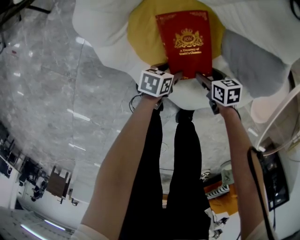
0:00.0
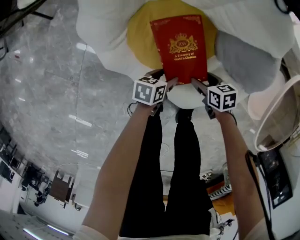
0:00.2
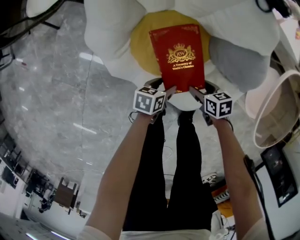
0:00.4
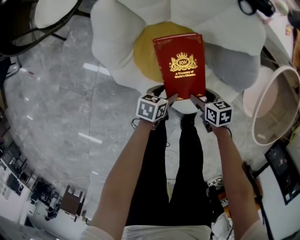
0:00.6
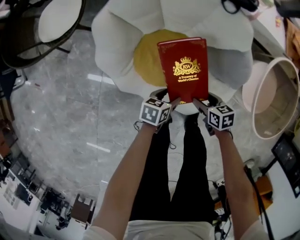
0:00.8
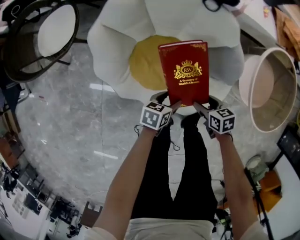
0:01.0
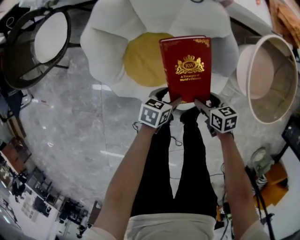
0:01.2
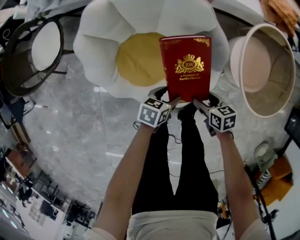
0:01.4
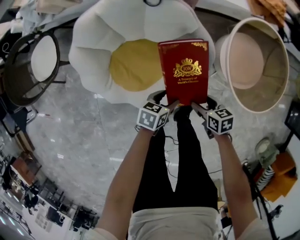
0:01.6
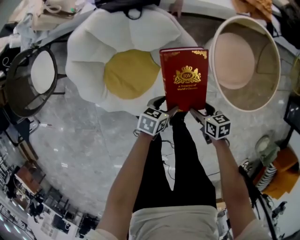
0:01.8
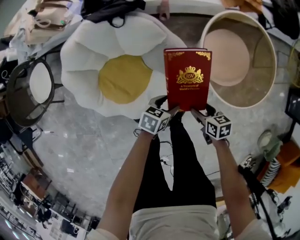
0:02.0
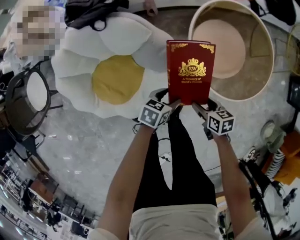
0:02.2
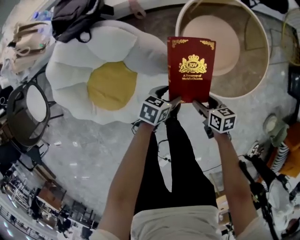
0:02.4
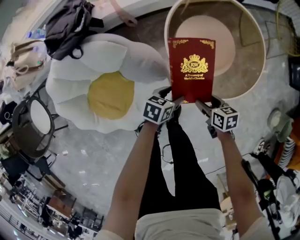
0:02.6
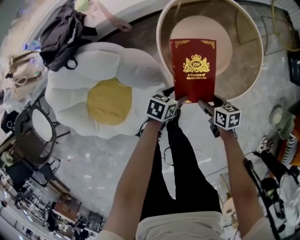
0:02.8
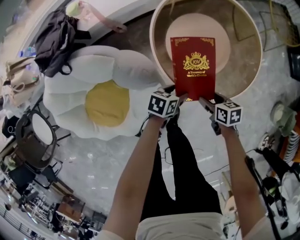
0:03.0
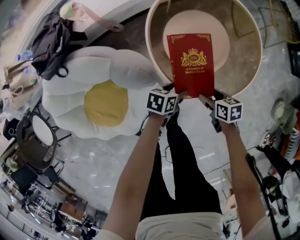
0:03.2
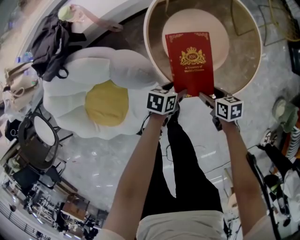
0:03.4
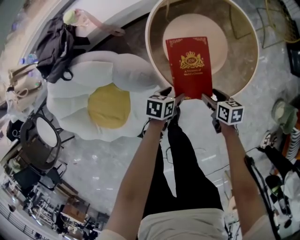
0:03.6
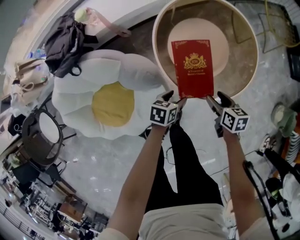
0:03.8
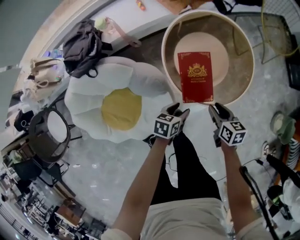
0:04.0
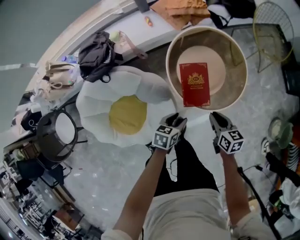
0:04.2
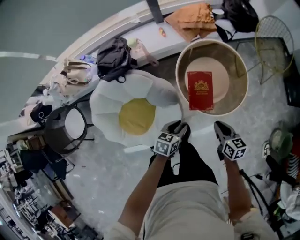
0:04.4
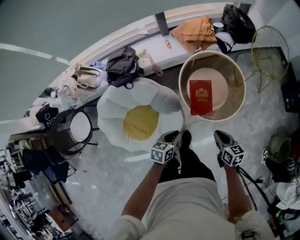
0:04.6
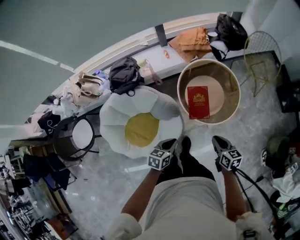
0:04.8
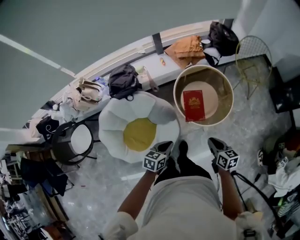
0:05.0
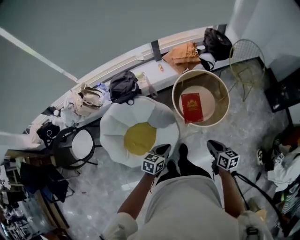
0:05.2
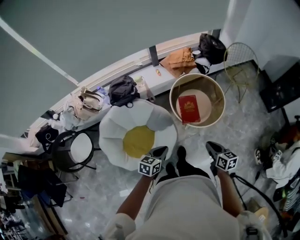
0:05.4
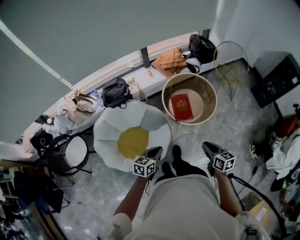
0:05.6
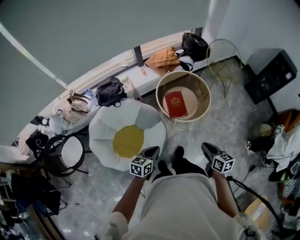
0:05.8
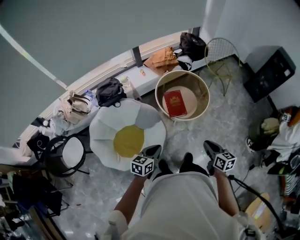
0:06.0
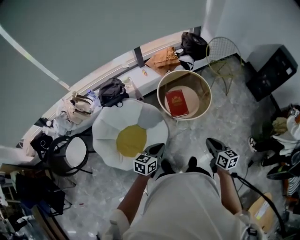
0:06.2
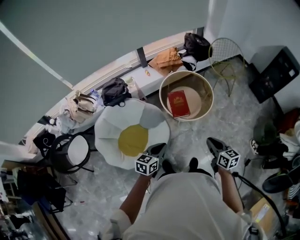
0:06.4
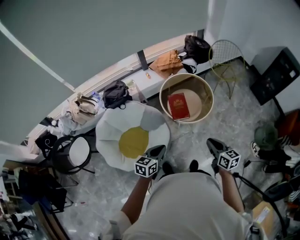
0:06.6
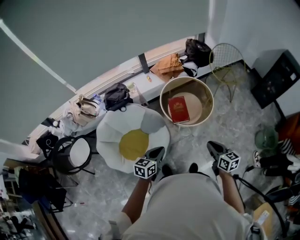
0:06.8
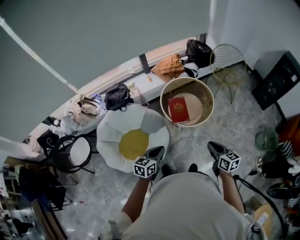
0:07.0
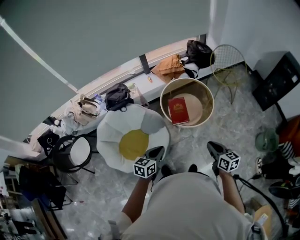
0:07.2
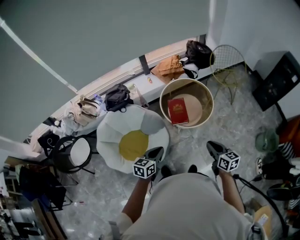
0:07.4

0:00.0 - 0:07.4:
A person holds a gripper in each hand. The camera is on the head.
0:00.0 - 0:01.4: The grippers both shift upward by roughly 25 cm. The right gripper changes its angle by about 30 degrees. Meanwhile the left gripper changes its angle by roughly 30 degrees.
0:01.4 - 0:03.0: The right gripper ends up roughly 35 cm from where it was, and changes its angle by some 30 degrees. Meanwhile the left gripper shifts by approximately 40 cm, and turns by some 30 degrees.
0:03.0 - 0:04.4: The two grippers go about 30 cm upward. The right gripper turns by approximately 30 degrees, and closes. Meanwhile the left gripper turns by approximately 20 degrees, and closes.
0:04.4 - 0:06.0: The grippers both shift backward and upward by some 35 cm. The left gripper closes its fingers.
0:06.0 - 0:07.4: Both grippers travel together to the right, approximately 5 cm.

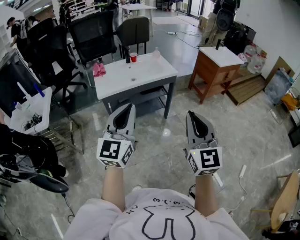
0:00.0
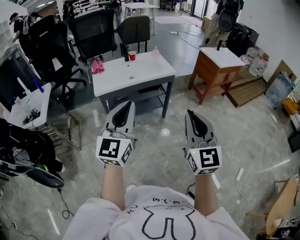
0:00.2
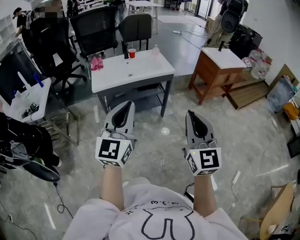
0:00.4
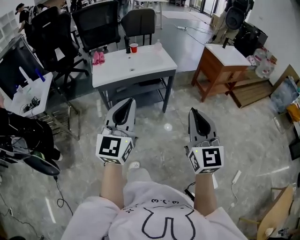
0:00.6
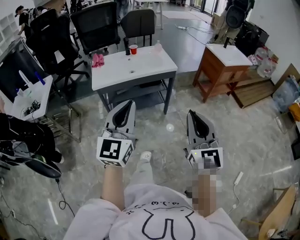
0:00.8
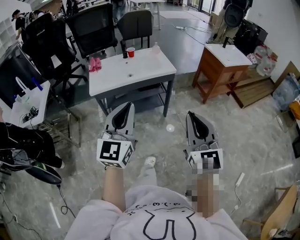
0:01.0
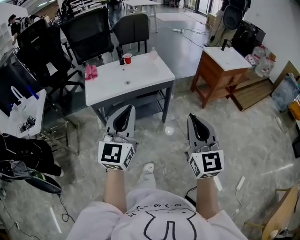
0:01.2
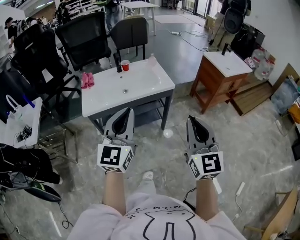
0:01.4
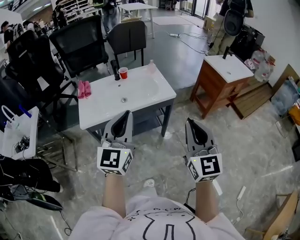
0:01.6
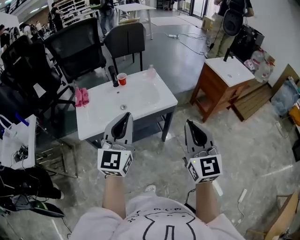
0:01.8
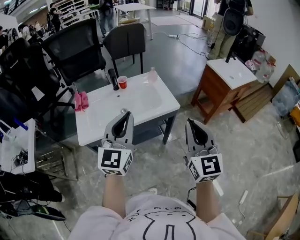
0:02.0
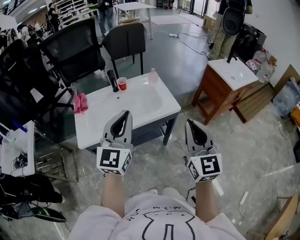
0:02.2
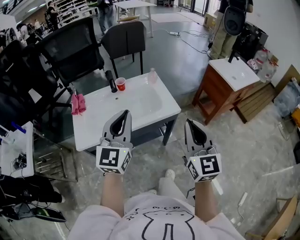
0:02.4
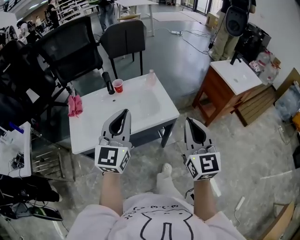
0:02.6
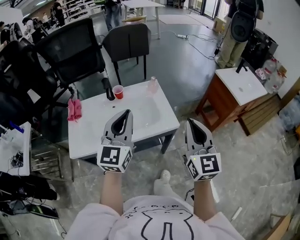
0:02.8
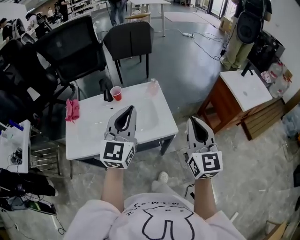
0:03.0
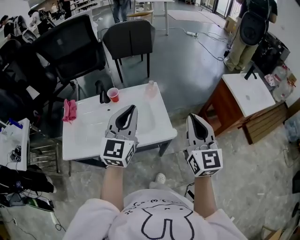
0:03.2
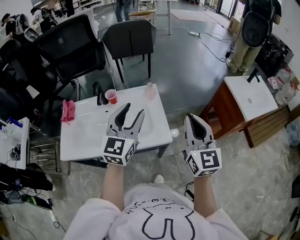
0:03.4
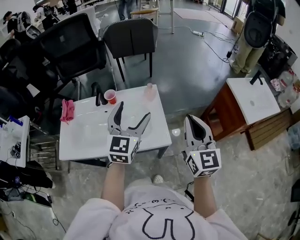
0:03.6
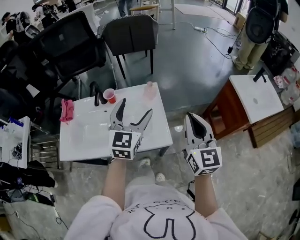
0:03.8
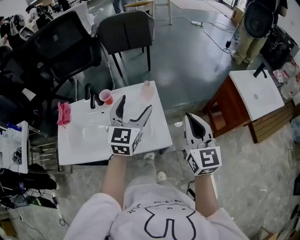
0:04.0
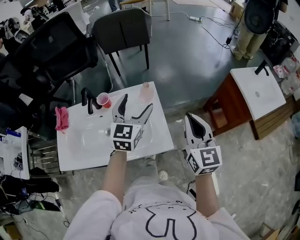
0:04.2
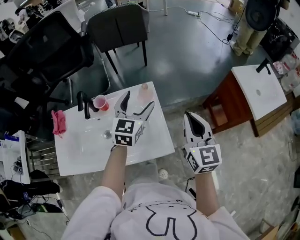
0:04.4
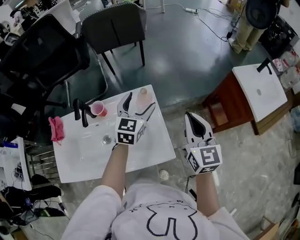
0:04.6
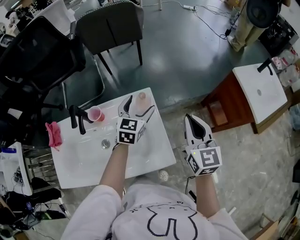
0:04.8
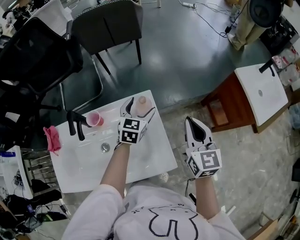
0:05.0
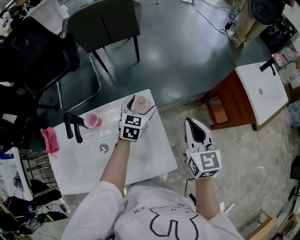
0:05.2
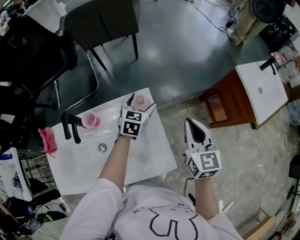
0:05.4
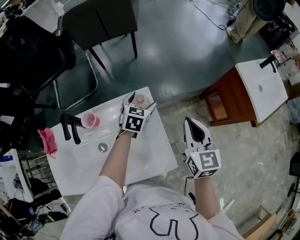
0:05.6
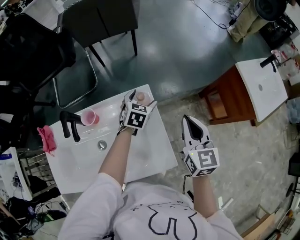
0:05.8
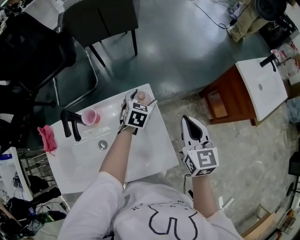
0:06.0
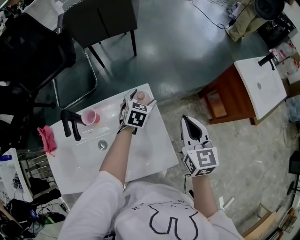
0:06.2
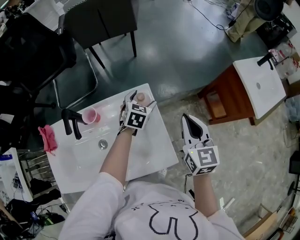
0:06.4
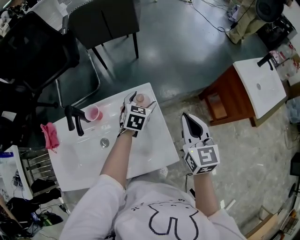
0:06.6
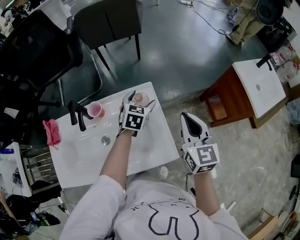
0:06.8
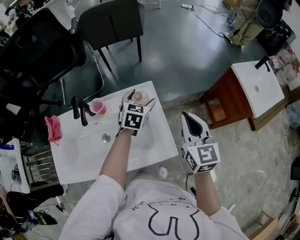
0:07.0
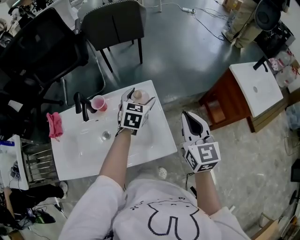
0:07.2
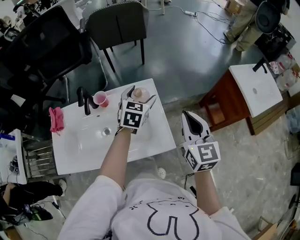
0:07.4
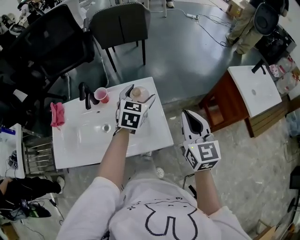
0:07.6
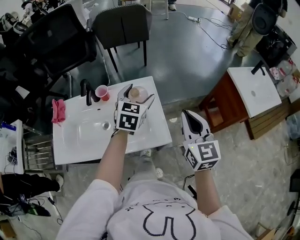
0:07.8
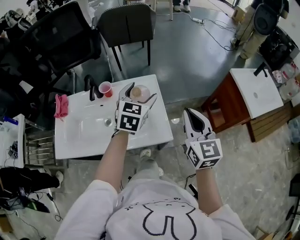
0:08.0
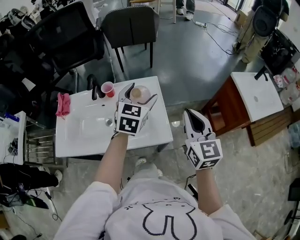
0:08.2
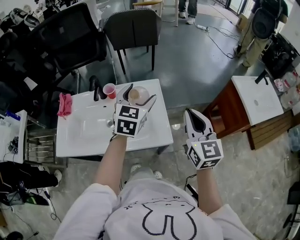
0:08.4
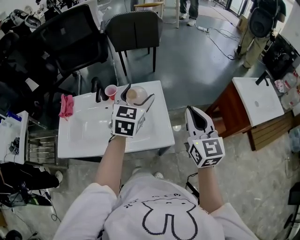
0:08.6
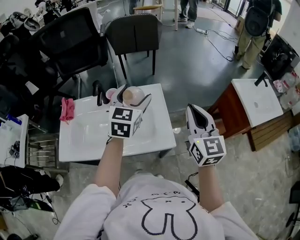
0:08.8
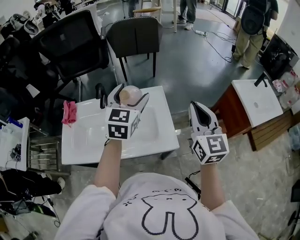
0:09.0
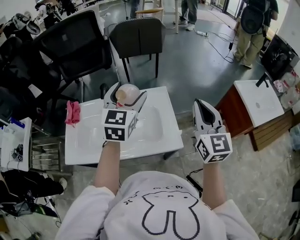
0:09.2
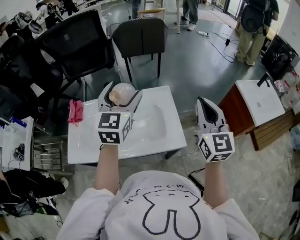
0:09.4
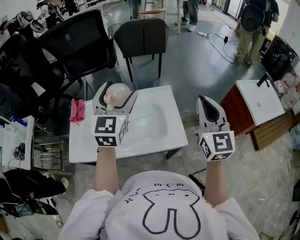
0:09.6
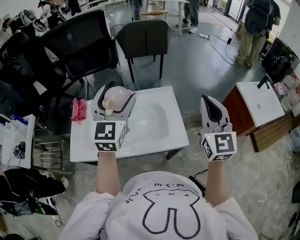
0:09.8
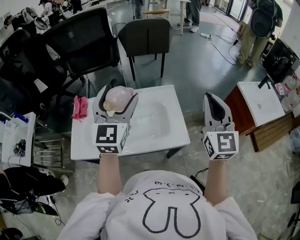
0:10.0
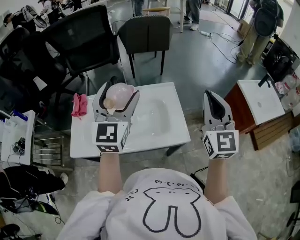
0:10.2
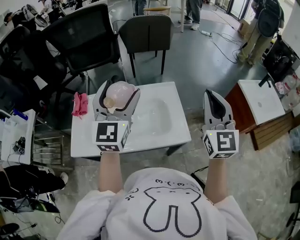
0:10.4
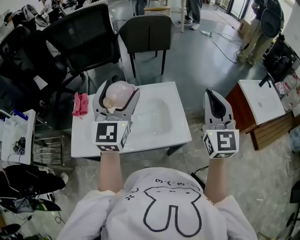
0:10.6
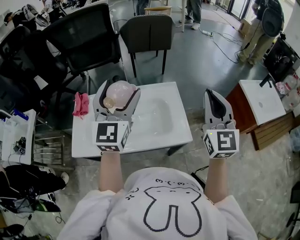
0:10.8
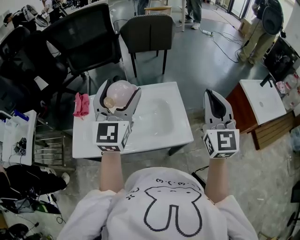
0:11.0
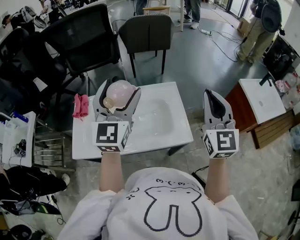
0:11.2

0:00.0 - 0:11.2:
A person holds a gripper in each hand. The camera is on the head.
0:00.0 - 0:01.6: Both grippers move forward, some 25 cm.
0:01.6 - 0:03.2: Both grippers travel together forward, approximately 35 cm.
0:03.2 - 0:04.8: Both grippers move forward and downward, approximately 30 cm. The left gripper turns by about 30 degrees, and opens.
0:04.8 - 0:06.4: The left gripper travels downward by approximately 10 cm.
0:06.4 - 0:08.0: The left gripper is displaced upward and backward by approximately 25 cm, and rotates about 20 degrees. Meanwhile the right gripper goes roughly 15 cm backward and upward.
0:08.0 - 0:09.6: The right gripper moves upward and to the left, roughly 10 cm. Meanwhile the left gripper shifts approximately 25 cm to the left and upward, and changes its angle by some 20 degrees.
0:09.6 - 0:11.2: The grippers move only a little.

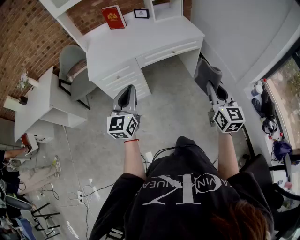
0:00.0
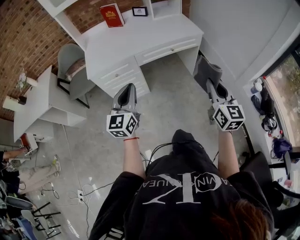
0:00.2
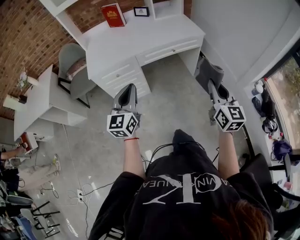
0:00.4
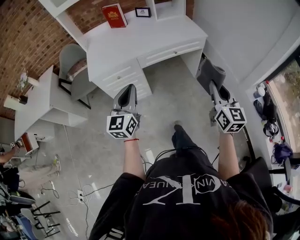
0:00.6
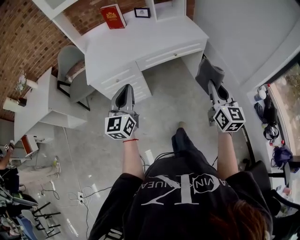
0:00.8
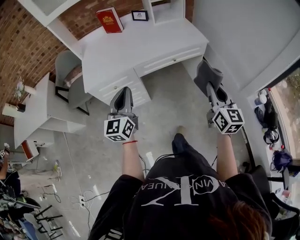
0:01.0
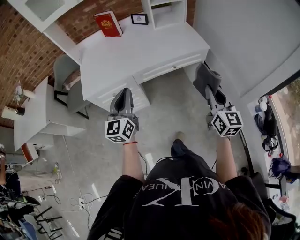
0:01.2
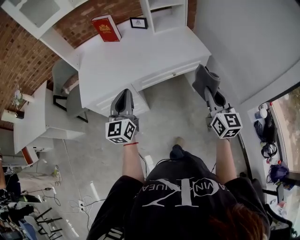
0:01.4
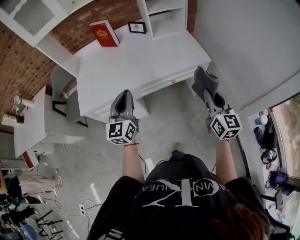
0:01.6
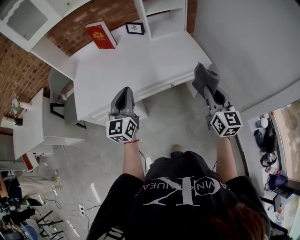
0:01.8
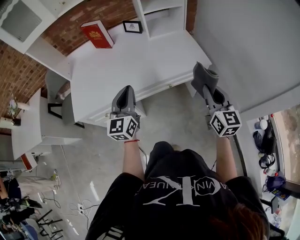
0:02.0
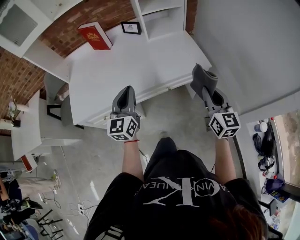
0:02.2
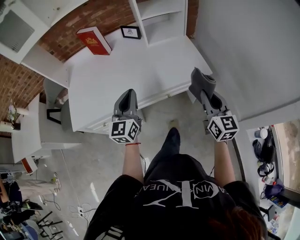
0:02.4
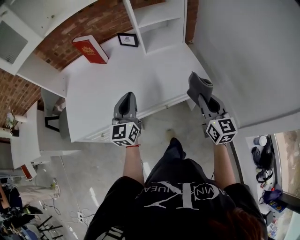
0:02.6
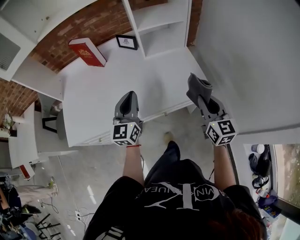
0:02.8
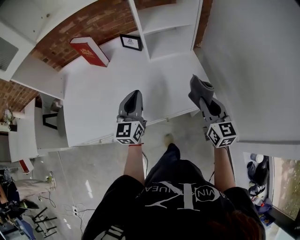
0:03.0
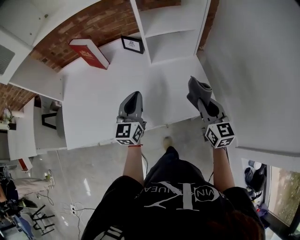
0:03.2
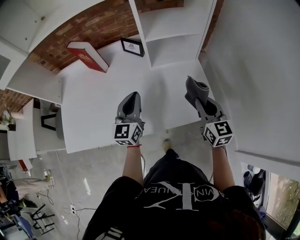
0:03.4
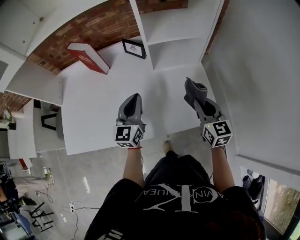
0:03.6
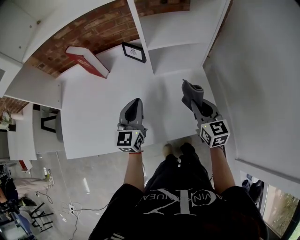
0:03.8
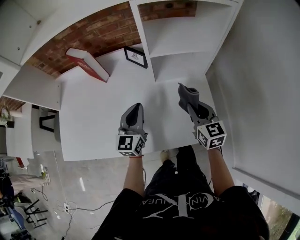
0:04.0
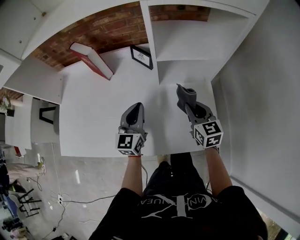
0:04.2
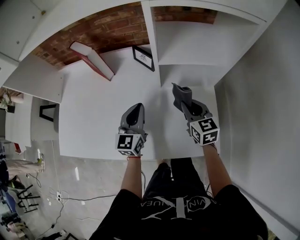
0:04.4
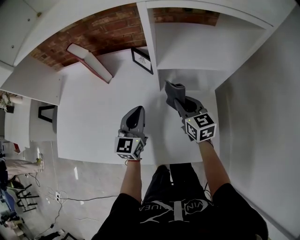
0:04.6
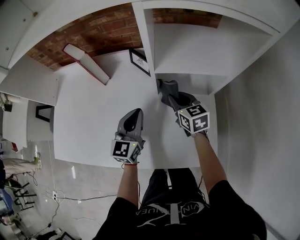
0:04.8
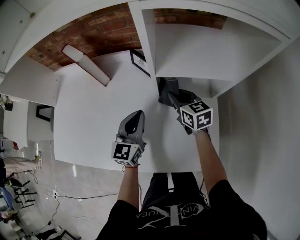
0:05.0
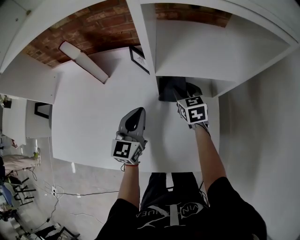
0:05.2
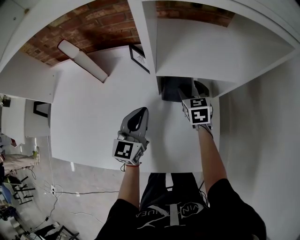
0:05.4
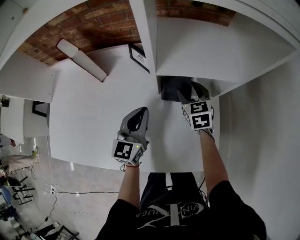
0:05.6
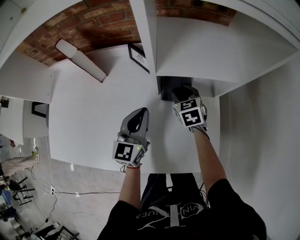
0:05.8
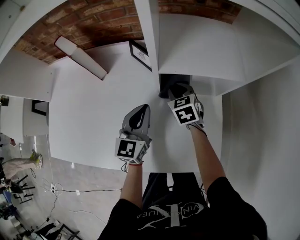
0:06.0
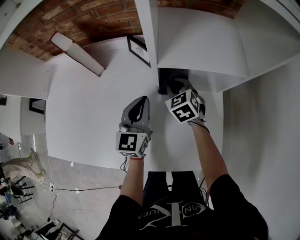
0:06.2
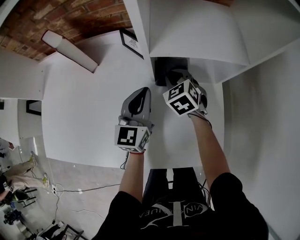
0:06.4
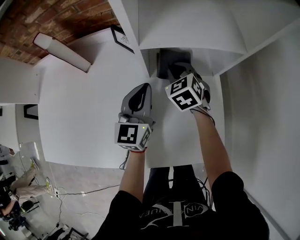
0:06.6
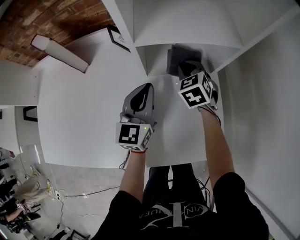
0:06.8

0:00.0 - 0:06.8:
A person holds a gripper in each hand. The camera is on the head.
0:00.0 - 0:01.4: The grippers both shift forward by approximately 20 cm.
0:01.4 - 0:02.8: The two grippers go approximately 30 cm forward.
0:02.8 - 0:04.0: The grippers both shift forward by some 20 cm.
0:04.0 - 0:05.4: The left gripper shifts approximately 10 cm forward; the right gripper heads forward and downward, covering roughly 25 cm, and opens up.
0:05.4 - 0:06.8: The left gripper goes some 5 cm to the right; the right gripper moves approximately 10 cm to the left and comes back, and closes up.
